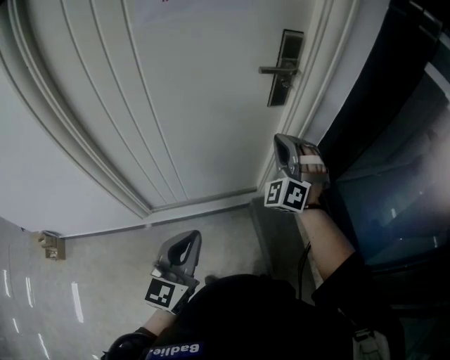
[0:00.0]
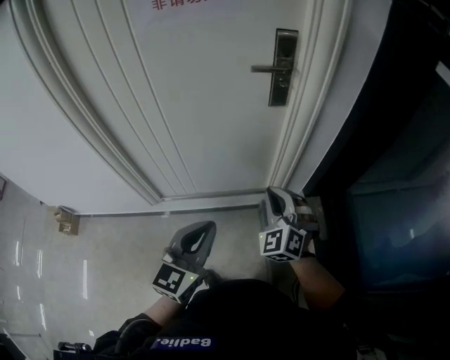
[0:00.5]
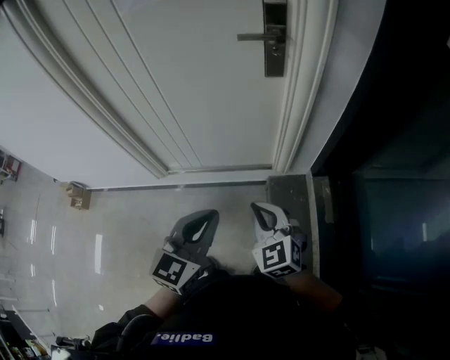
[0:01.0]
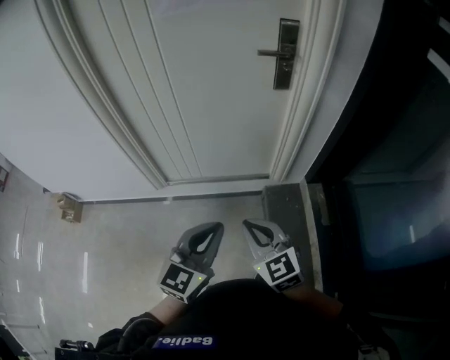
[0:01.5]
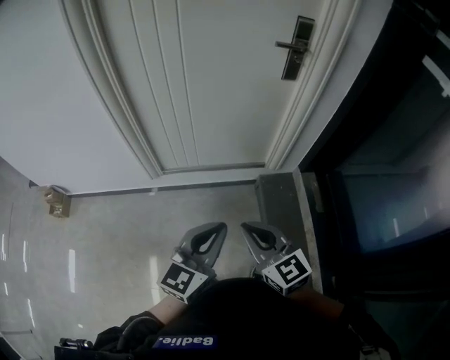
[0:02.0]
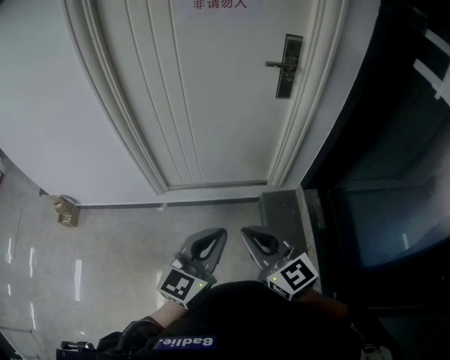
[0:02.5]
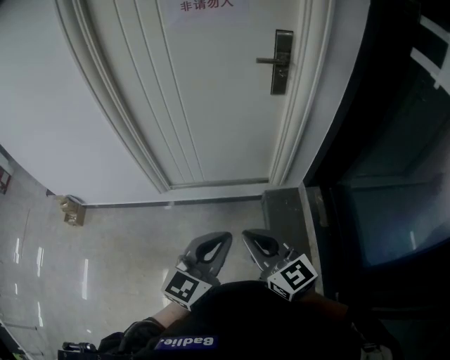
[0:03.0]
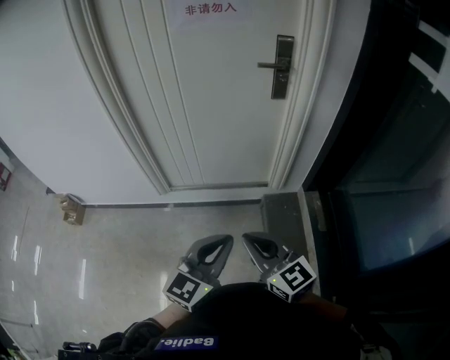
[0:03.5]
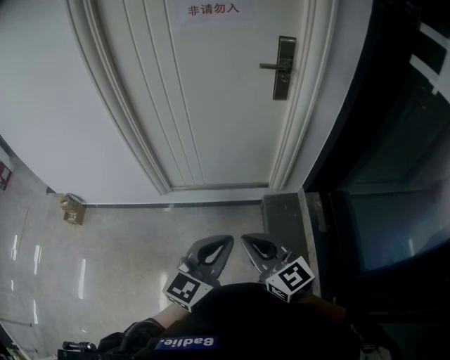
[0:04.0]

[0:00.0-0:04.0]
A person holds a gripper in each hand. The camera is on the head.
0:00.0 to 0:02.0: The right gripper is displaced backward by some 40 cm, and rotates around the line of its fingers by roughly 70 degrees, clockwise from behind, while the left gripper shifts approximately 15 cm backward, and reaches some 20 cm to the right, then returns.
0:02.0 to 0:04.0: Both grippers travel together to the right, roughly 10 cm.

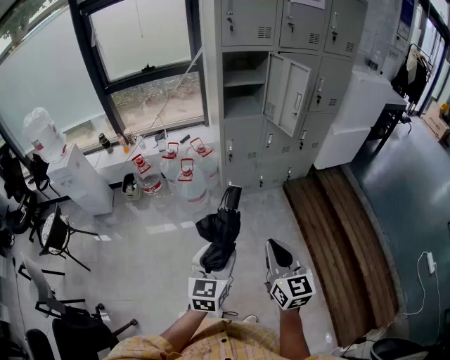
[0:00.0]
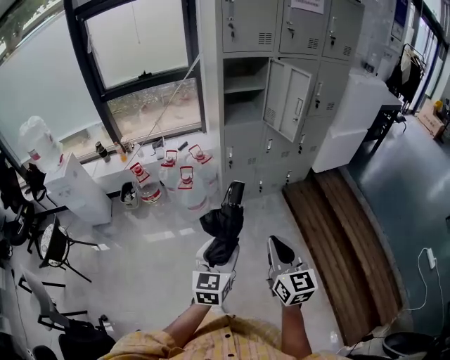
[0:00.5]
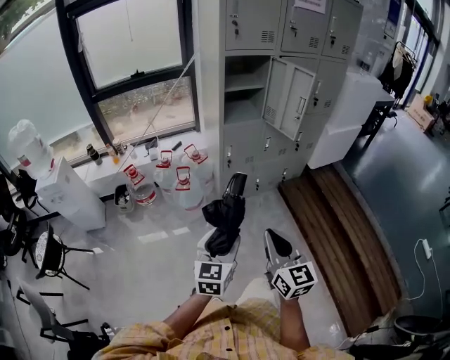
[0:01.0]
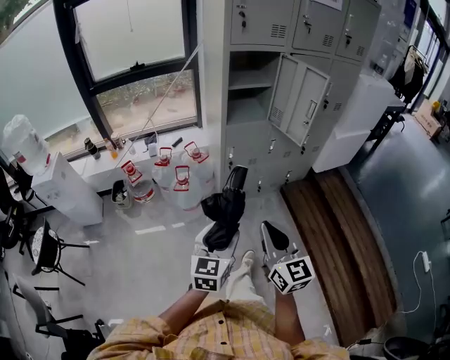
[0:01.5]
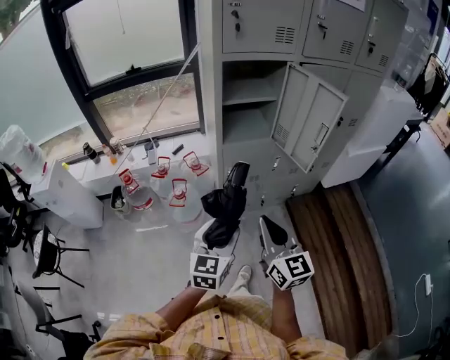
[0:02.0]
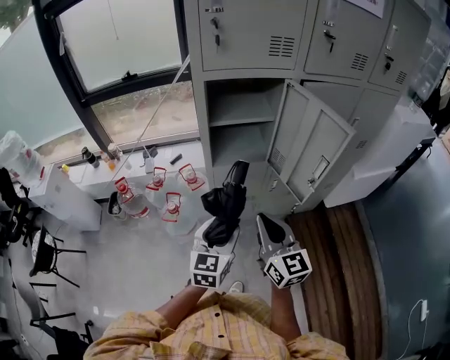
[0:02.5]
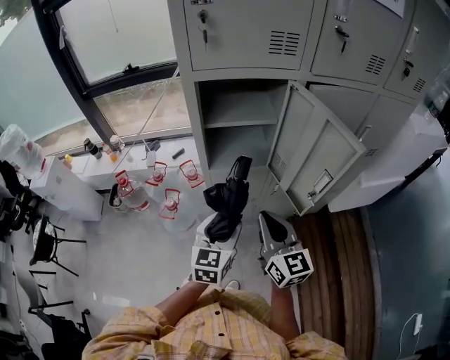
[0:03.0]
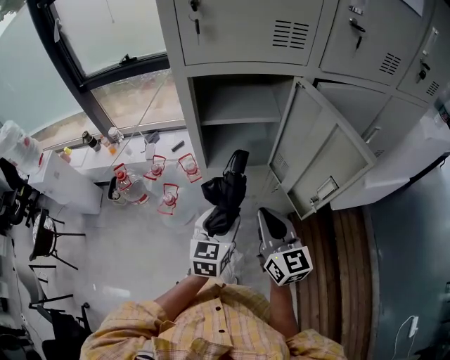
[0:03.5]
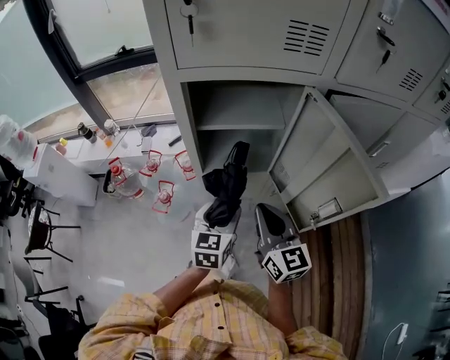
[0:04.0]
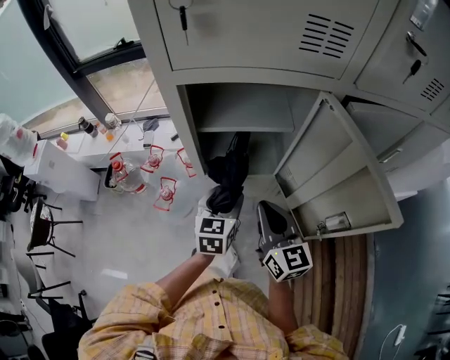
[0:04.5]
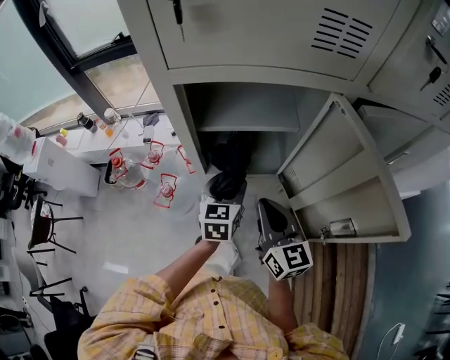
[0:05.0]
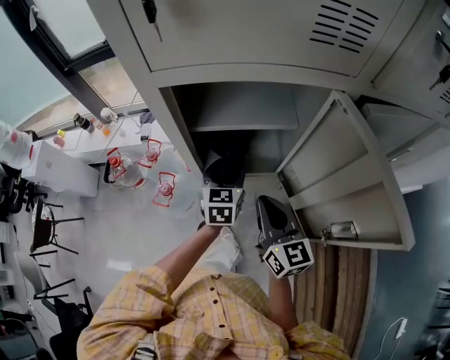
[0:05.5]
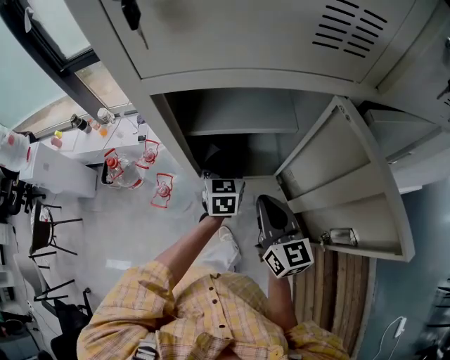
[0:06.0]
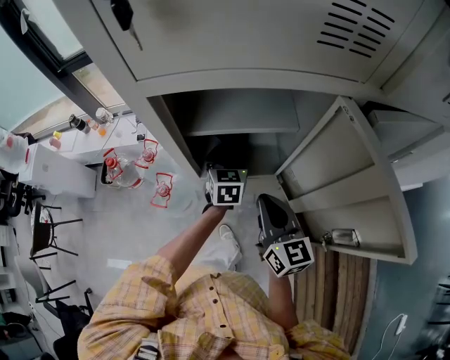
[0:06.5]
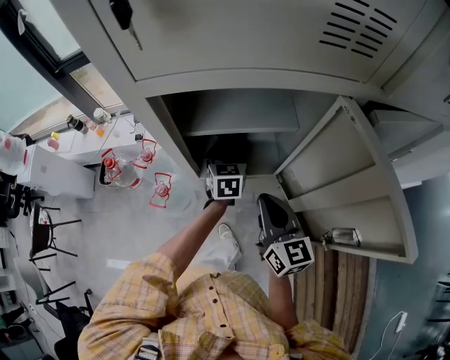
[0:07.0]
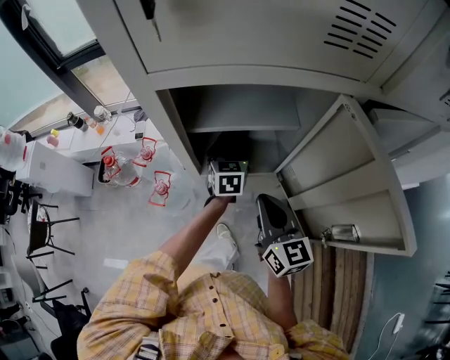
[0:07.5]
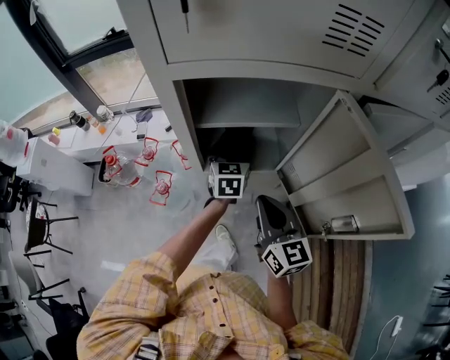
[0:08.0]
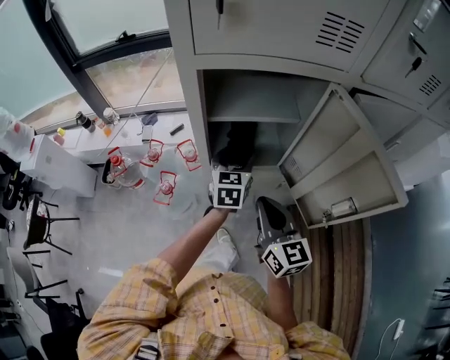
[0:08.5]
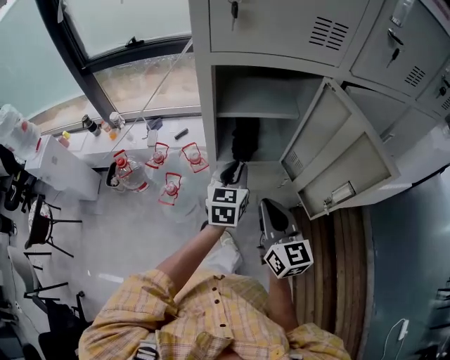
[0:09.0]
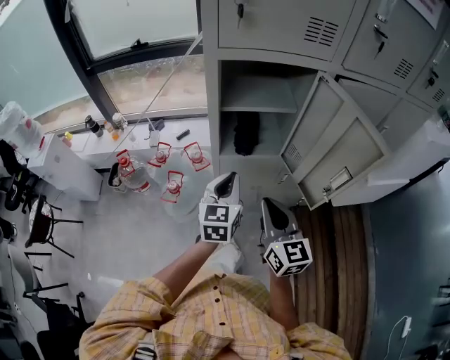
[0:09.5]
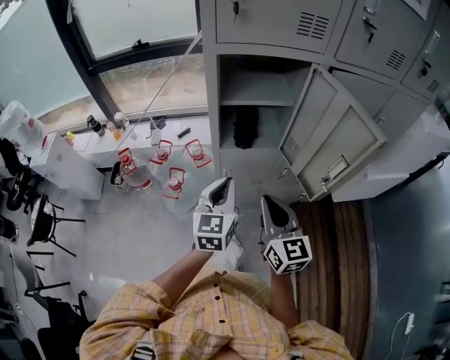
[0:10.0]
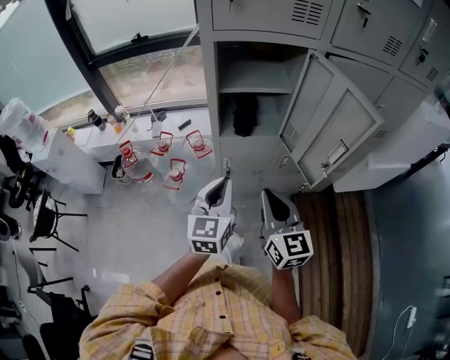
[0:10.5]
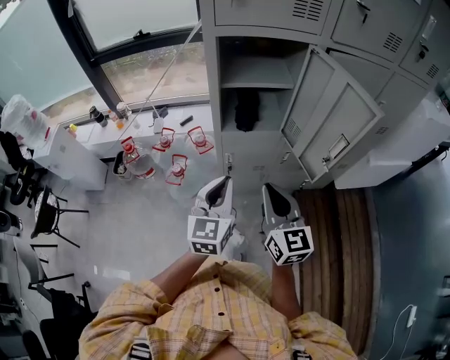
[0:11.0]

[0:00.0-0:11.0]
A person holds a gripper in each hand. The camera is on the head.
0:00.0 to 0:02.0: The two grippers go approximately 35 cm forward.
0:02.0 to 0:03.5: The grippers both shift forward and to the right by some 25 cm.
0:03.5 to 0:05.5: The left gripper is displaced forward by some 20 cm, while the right gripper travels forward by approximately 10 cm.
0:05.5 to 0:07.5: The left gripper heads forward, covering about 10 cm.
0:07.5 to 0:09.0: The right gripper moves backward, some 10 cm, while the left gripper goes about 20 cm backward and upward, and closes its fingers.
0:09.0 to 0:11.0: The left gripper moves backward, some 20 cm. Meanwhile the right gripper shifts roughly 10 cm backward.

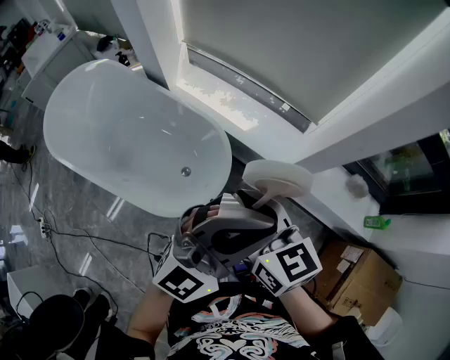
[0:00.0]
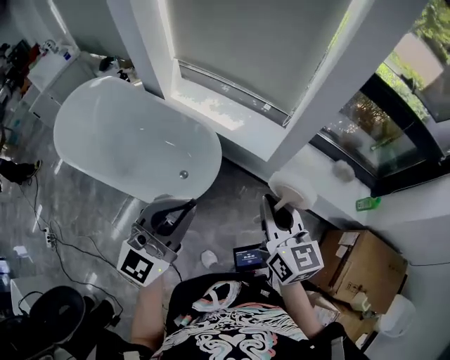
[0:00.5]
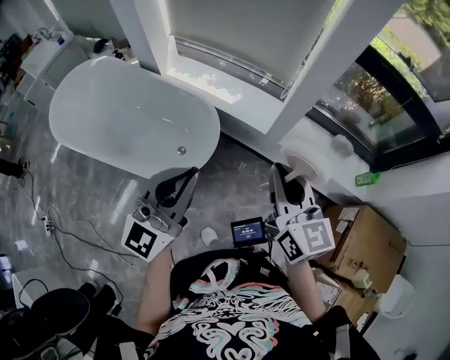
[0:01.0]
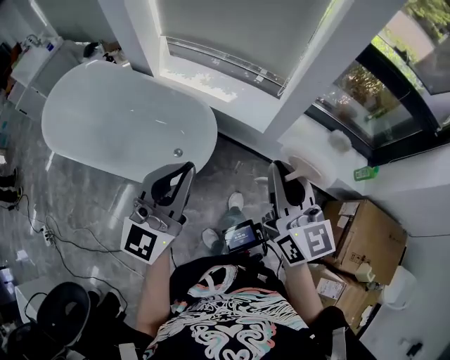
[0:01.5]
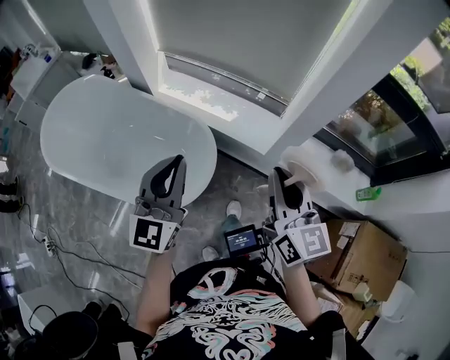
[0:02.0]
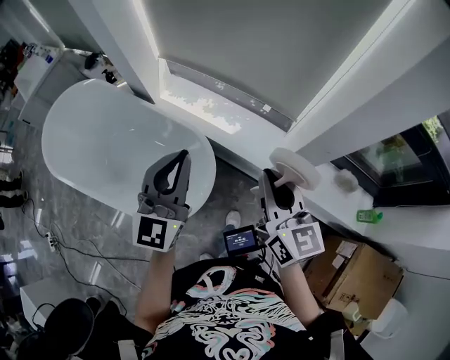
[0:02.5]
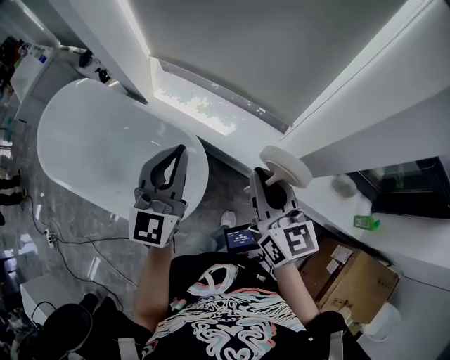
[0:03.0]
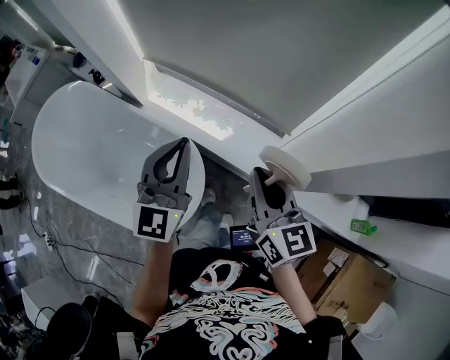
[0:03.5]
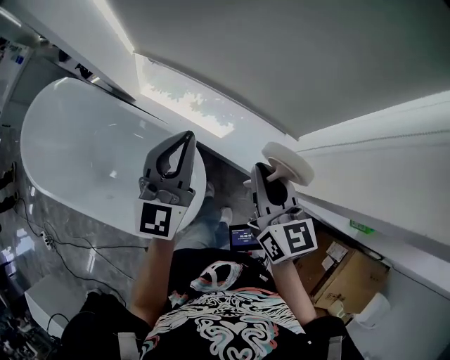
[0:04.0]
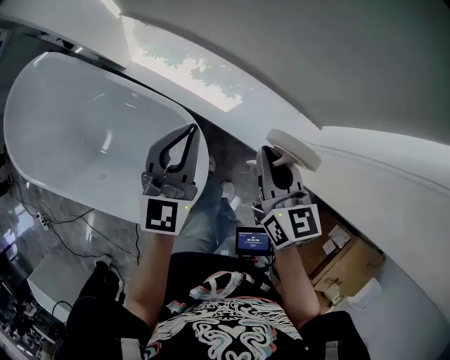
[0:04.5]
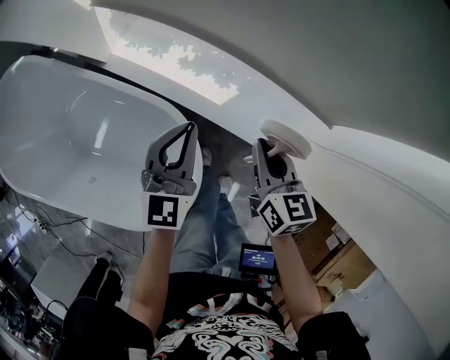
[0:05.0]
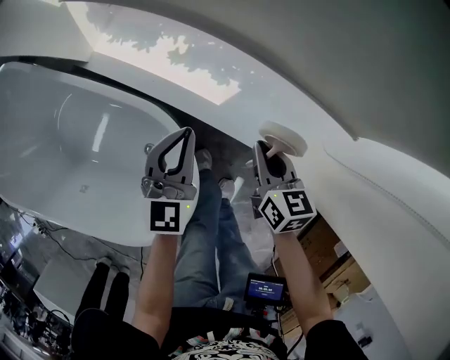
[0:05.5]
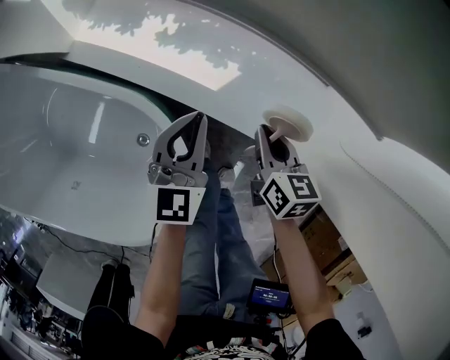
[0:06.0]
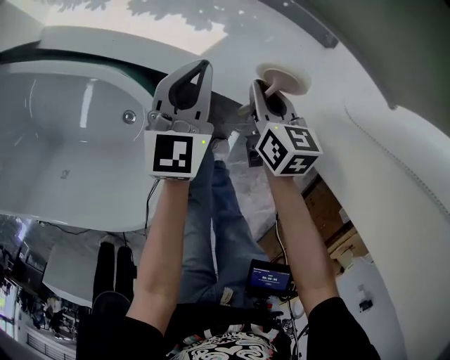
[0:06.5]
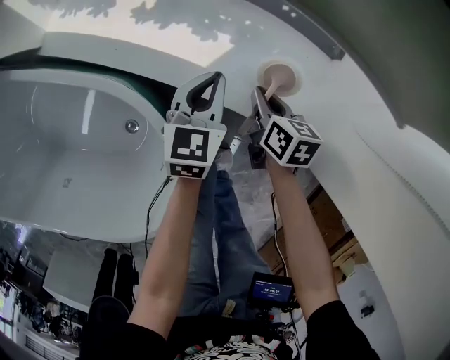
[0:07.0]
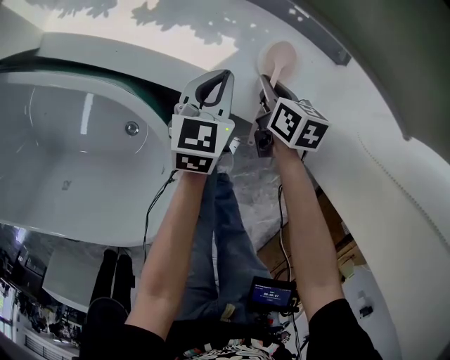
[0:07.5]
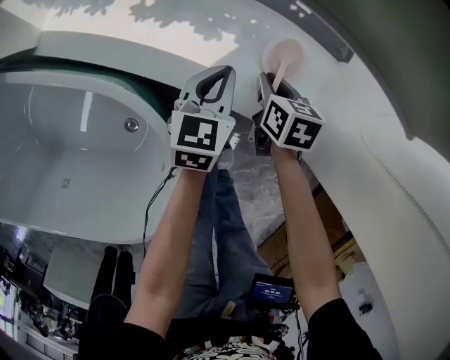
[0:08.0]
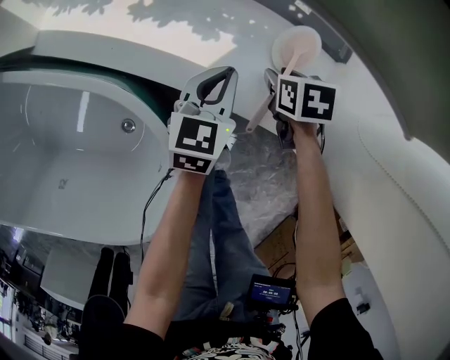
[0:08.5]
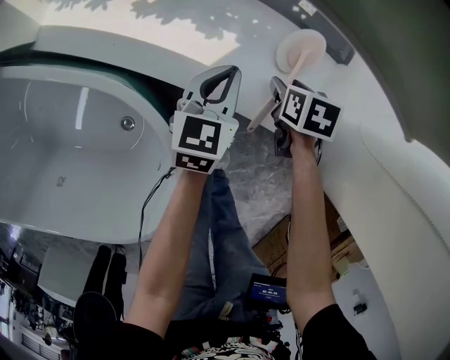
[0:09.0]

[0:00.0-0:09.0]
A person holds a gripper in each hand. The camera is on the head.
0:00.0 to 0:02.0: The left gripper is displaced to the left by approximately 10 cm, goes backward and returns, some 15 cm each way, and rotates about 40 degrees. Meanwhile the right gripper shifts about 15 cm to the right, and rotates approximately 20 degrees.
0:02.0 to 0:04.5: The two grippers go about 40 cm forward and downward. The right gripper swivels roughly 20 degrees.
0:04.5 to 0:07.0: Both grippers travel together downward, about 40 cm. The left gripper changes its angle by approximately 30 degrees. Meanwhile the right gripper changes its angle by some 30 degrees.
0:07.0 to 0:09.0: The right gripper travels to the right by roughly 5 cm, changes its angle by approximately 30 degrees, and opens its fingers.

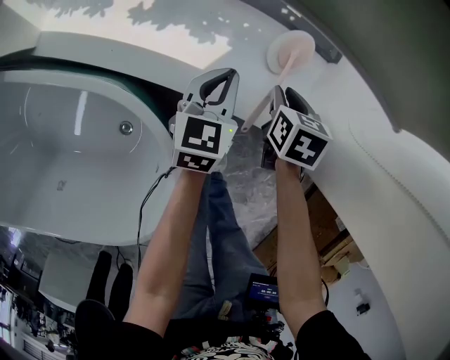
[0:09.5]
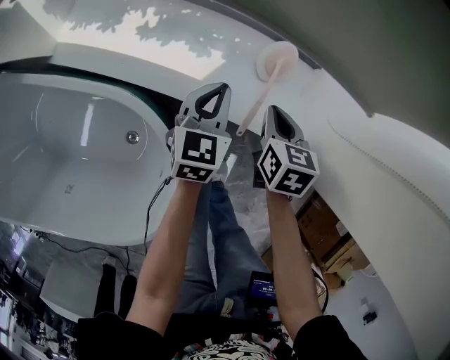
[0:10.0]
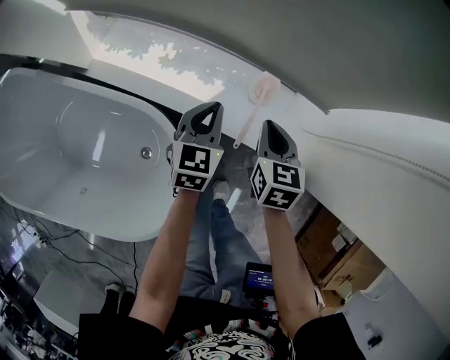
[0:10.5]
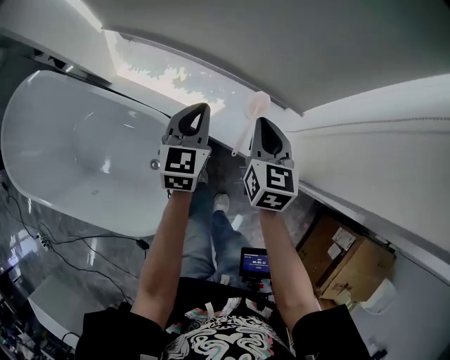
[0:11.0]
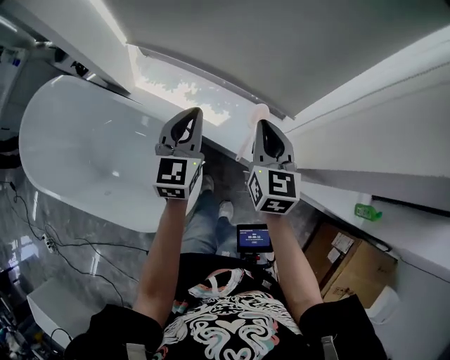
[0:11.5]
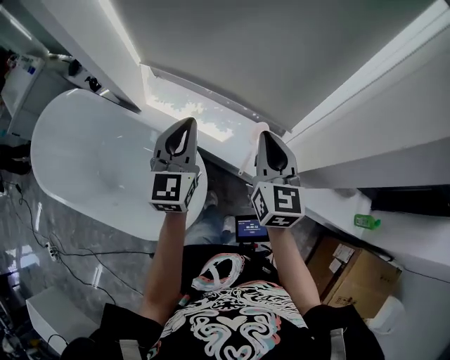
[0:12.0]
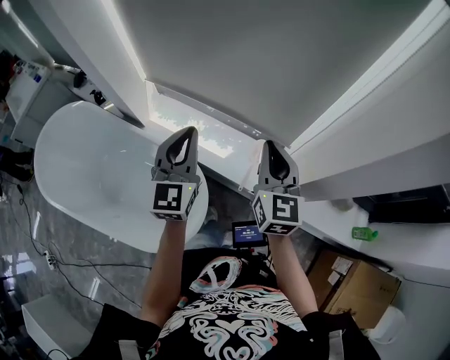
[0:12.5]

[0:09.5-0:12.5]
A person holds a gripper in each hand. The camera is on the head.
0:09.5 to 0:11.0: The two grippers go about 35 cm upward. The left gripper turns by about 20 degrees, while the right gripper angles its fingers upward, by some 40 degrees, and closes its fingers.
0:11.0 to 0:12.5: The two grippers go about 25 cm upward. The right gripper swivels approximately 20 degrees. Meanwhile the left gripper changes its angle by some 20 degrees.
